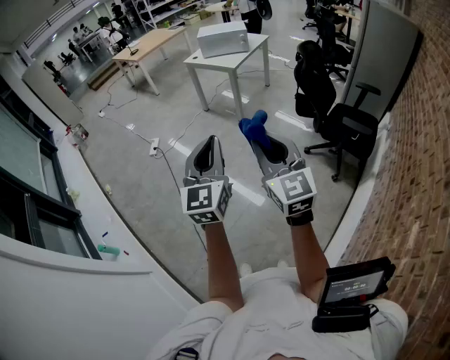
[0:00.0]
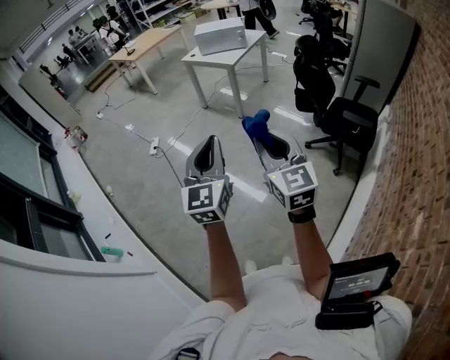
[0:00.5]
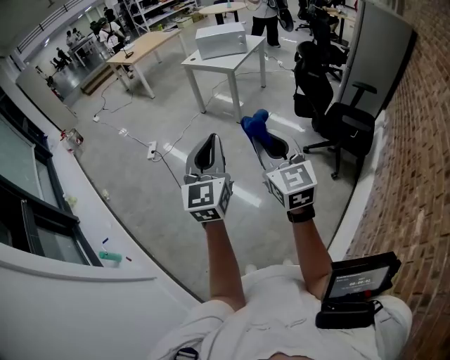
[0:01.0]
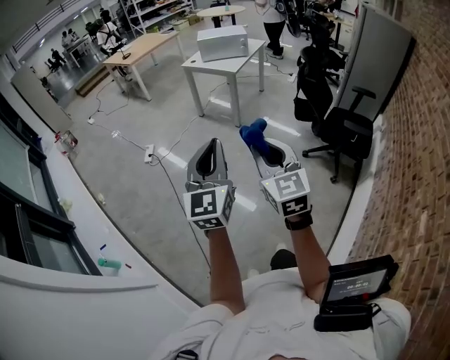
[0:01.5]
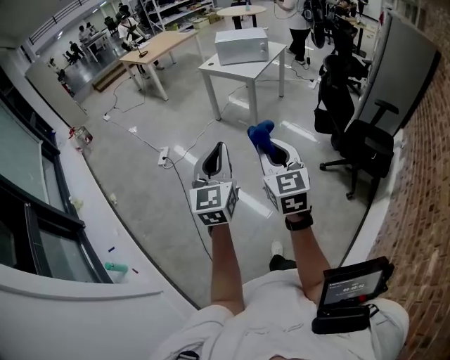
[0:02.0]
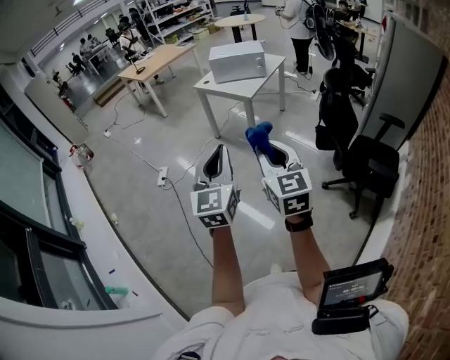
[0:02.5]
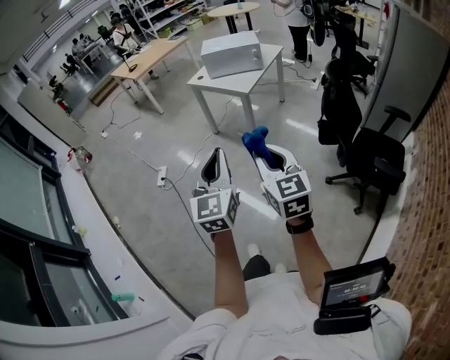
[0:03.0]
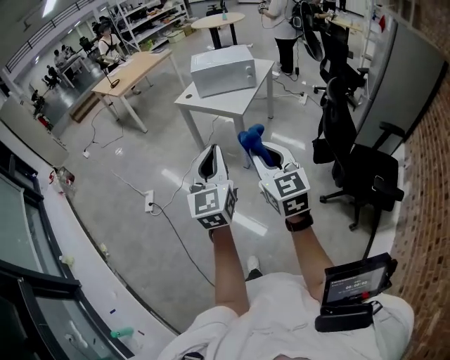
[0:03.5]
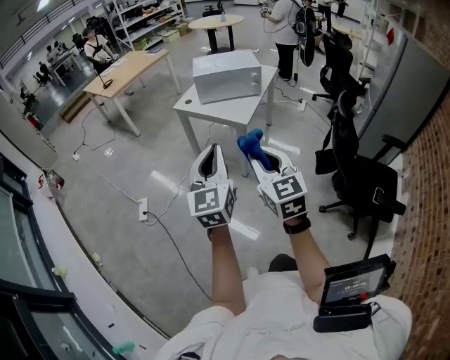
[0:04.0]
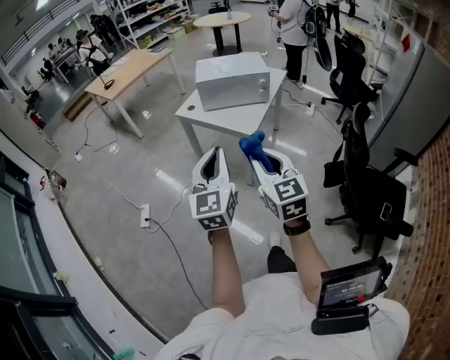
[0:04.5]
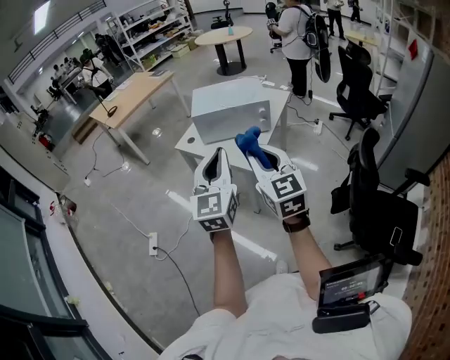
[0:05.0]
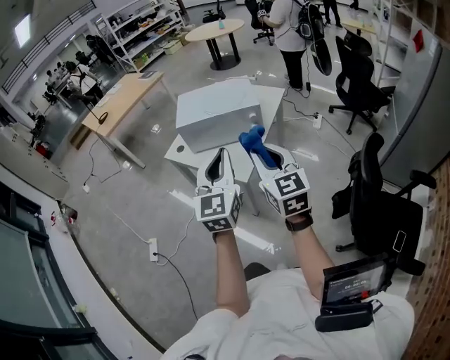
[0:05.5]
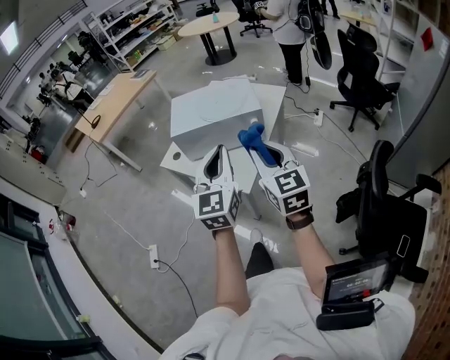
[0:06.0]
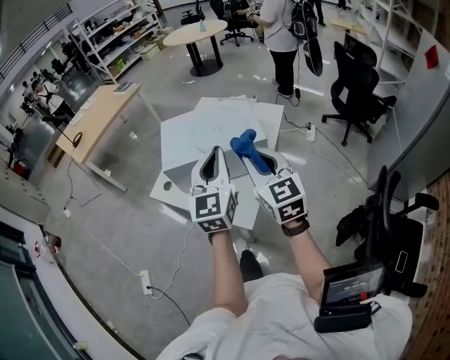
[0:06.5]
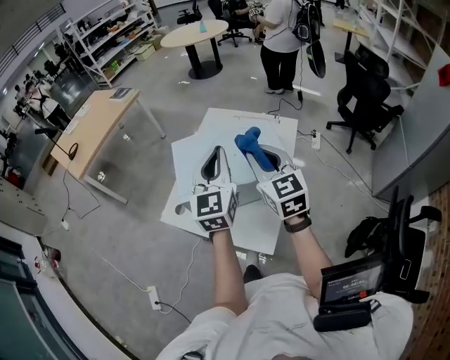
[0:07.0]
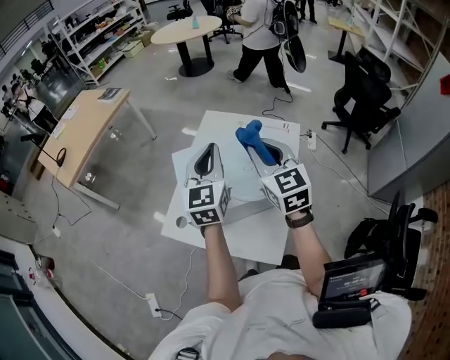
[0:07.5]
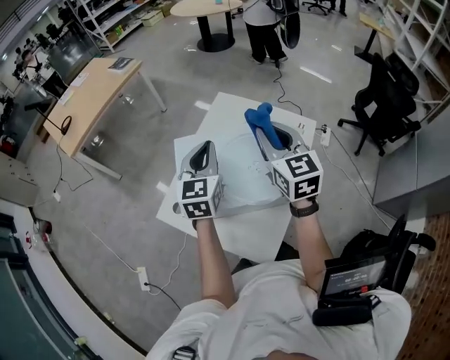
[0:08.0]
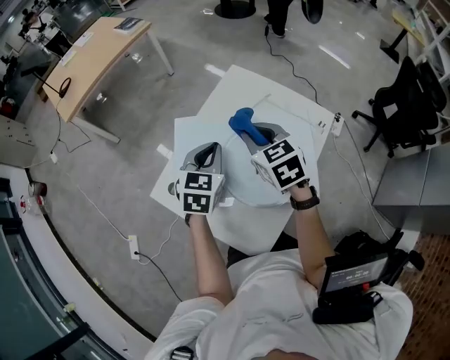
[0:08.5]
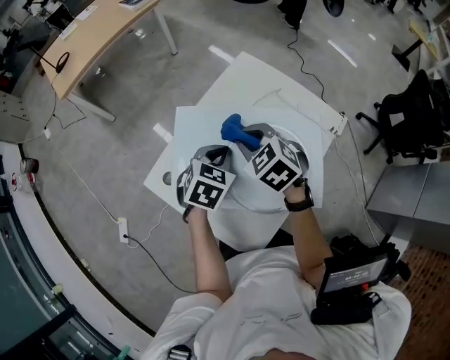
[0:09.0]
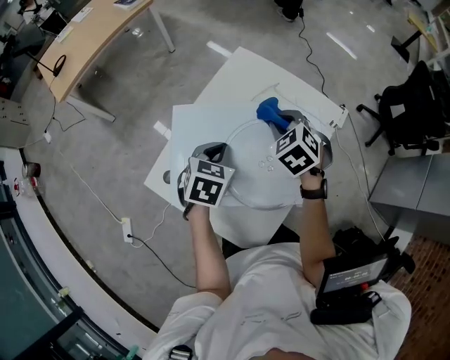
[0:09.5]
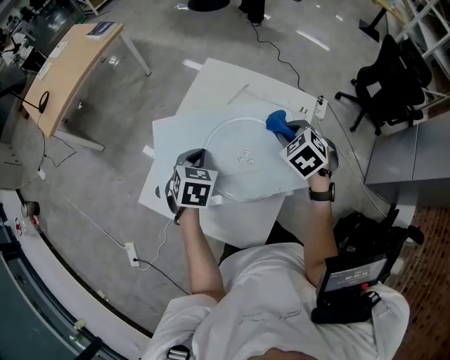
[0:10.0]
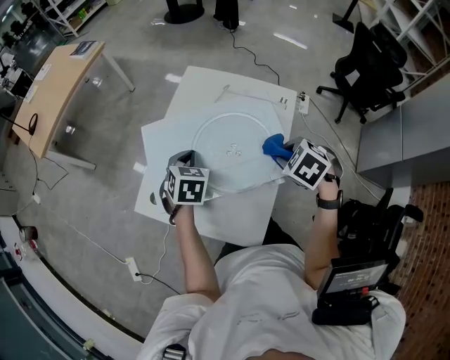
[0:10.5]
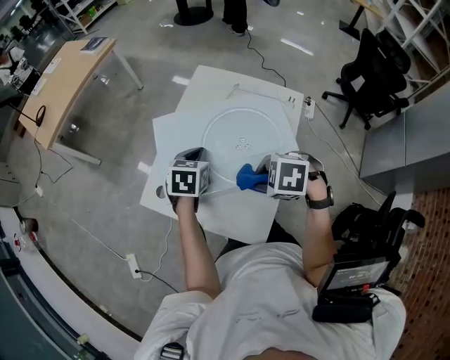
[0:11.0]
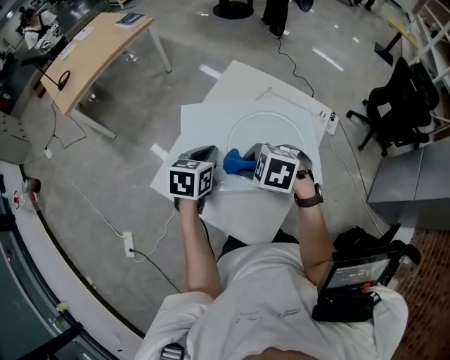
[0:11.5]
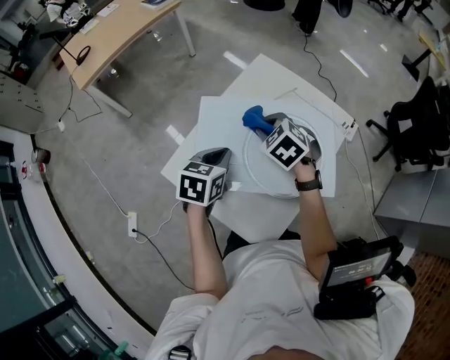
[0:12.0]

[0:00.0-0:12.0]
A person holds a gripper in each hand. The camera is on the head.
0:00.0 to 0:02.0: Both grippers travel together forward and to the left, about 15 cm.
0:02.0 to 0:04.0: Both grippers are carried forward, about 50 cm.
0:04.0 to 0:06.0: The pair of grippers is taken forward and to the right, approximately 50 cm.
0:06.0 to 0:08.0: Both grippers are carried forward, about 40 cm.
0:08.0 to 0:10.0: The two grippers go roughly 15 cm downward. The right gripper moves approximately 10 cm to the left and comes back, and angles its fingers downward, by about 50 degrees. The left gripper tips its fingers downward by some 40 degrees.
0:10.0 to 0:12.0: The left gripper shifts by approximately 5 cm, and swivels some 20 degrees; the right gripper moves roughly 20 cm, and swivels some 20 degrees.

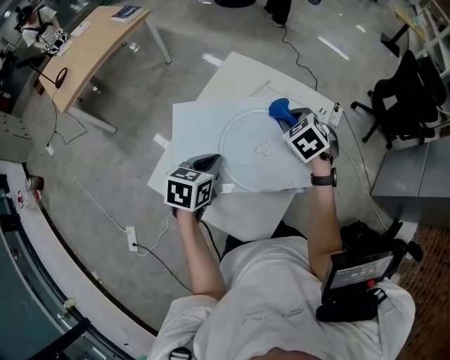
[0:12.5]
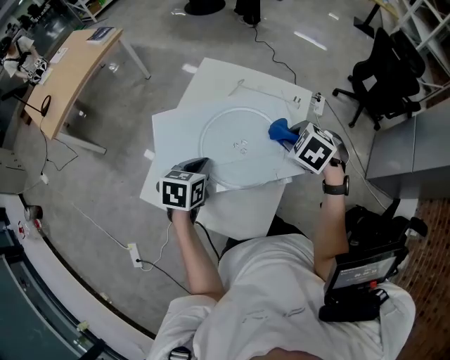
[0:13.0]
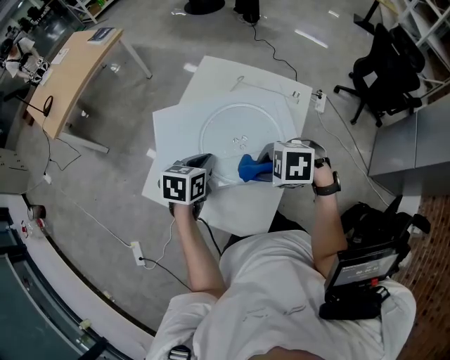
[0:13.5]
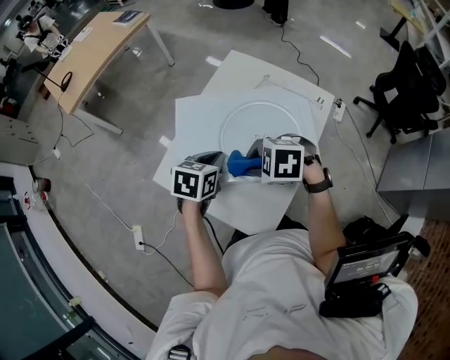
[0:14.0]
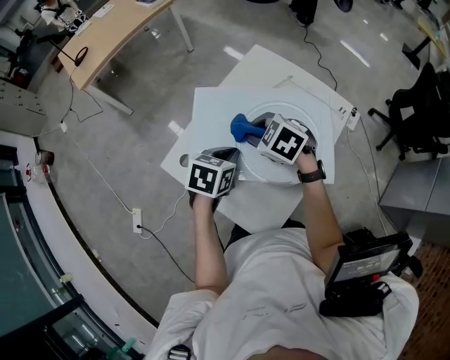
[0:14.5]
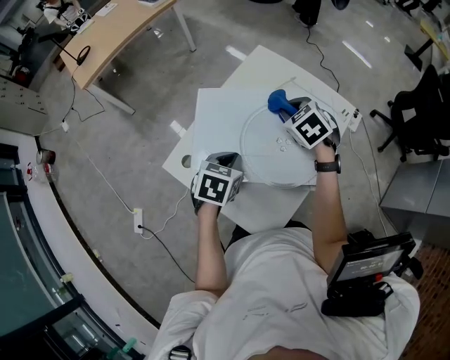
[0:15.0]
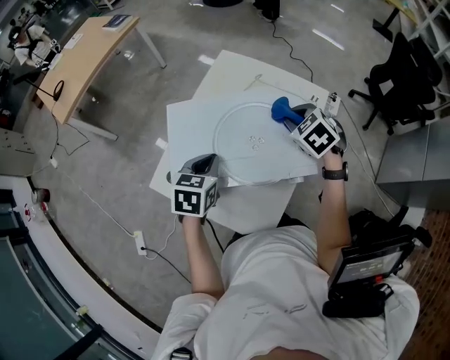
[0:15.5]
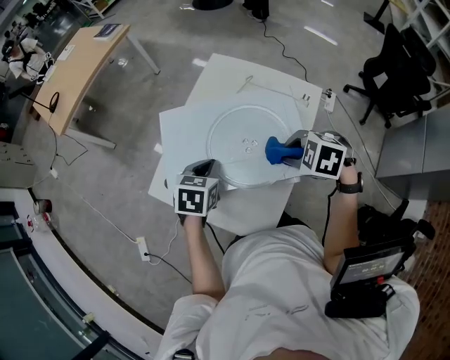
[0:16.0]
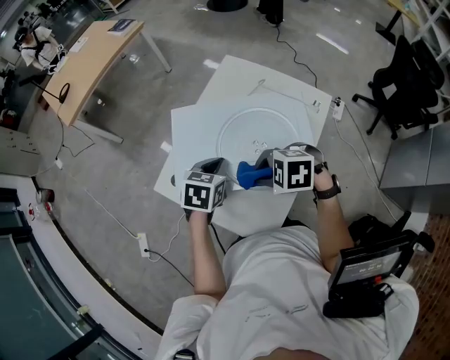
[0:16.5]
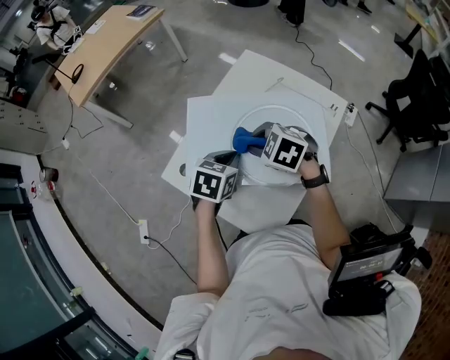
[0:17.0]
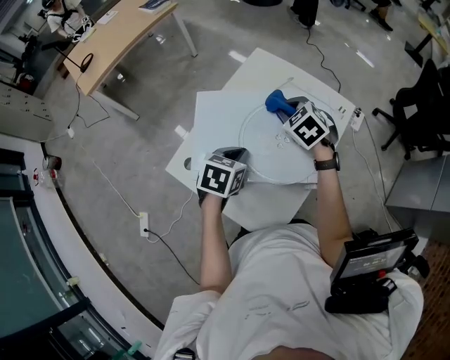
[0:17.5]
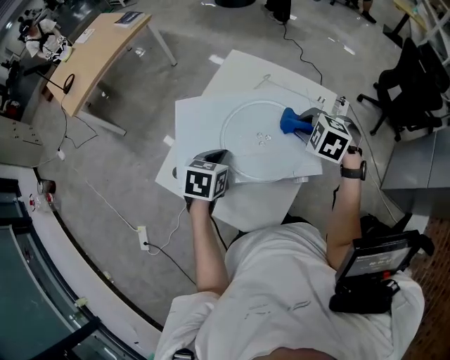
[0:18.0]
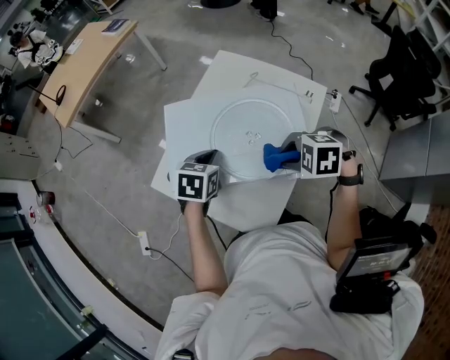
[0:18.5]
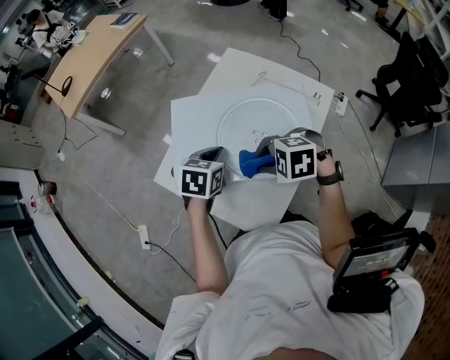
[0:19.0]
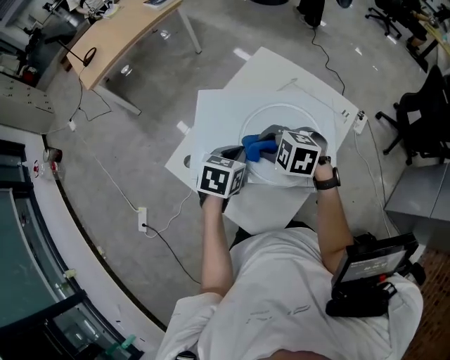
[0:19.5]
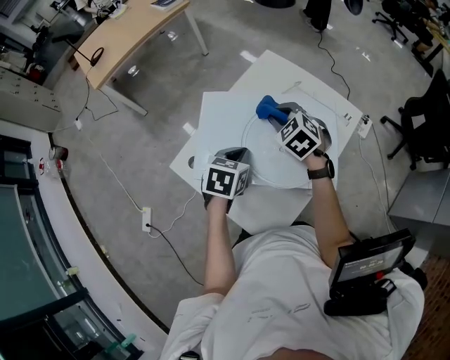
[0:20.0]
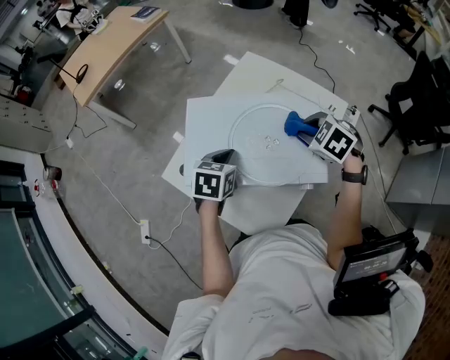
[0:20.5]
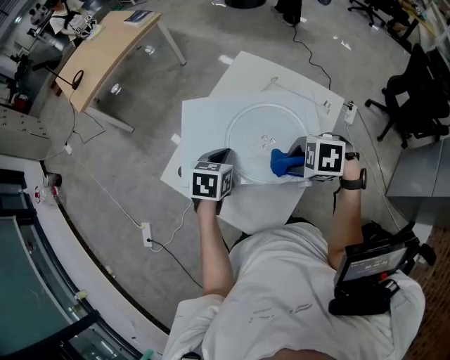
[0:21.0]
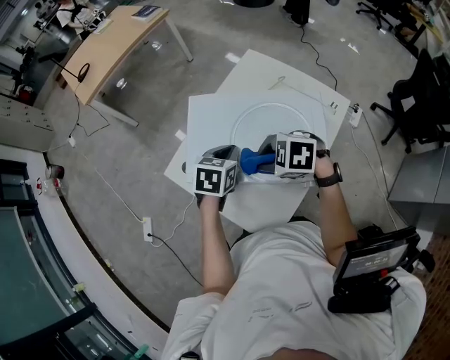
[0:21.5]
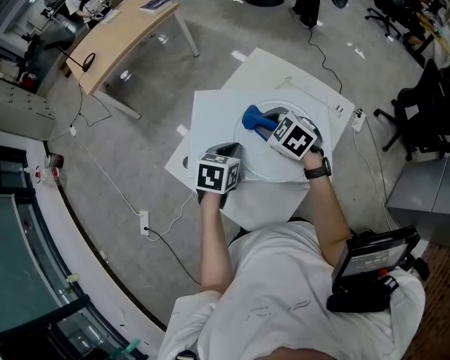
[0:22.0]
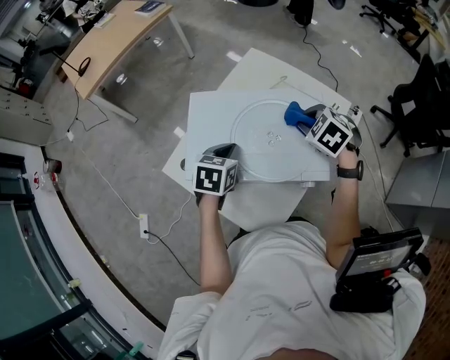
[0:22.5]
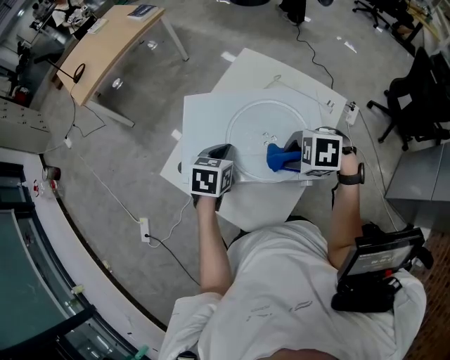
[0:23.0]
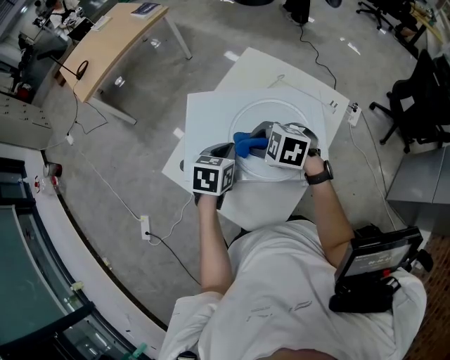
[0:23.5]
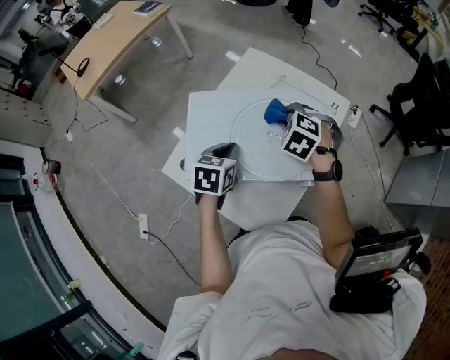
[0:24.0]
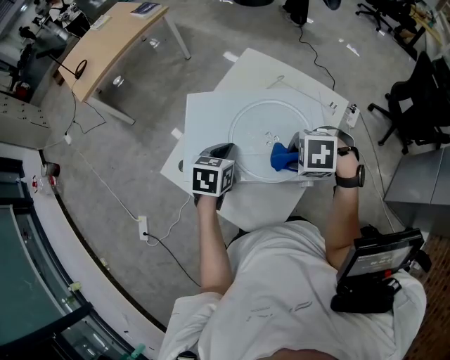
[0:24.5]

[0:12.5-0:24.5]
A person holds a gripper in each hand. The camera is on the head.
0:12.5 to 0:14.5: The right gripper ends up roughly 20 cm from where it was, and turns by some 30 degrees.
0:14.5 to 0:16.5: The right gripper turns by approximately 20 degrees.
0:18.5 to 0:20.5: The right gripper is displaced forward and to the right by about 10 cm, and swivels approximately 30 degrees.
0:22.5 to 0:24.5: The right gripper ends up some 15 cm from where it was, and swivels about 40 degrees.

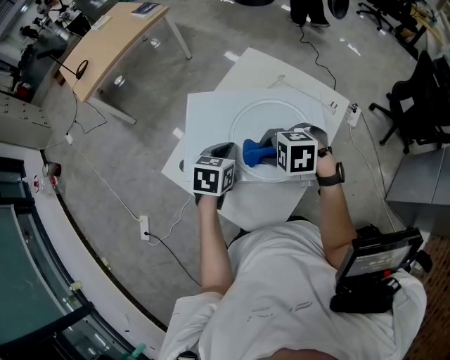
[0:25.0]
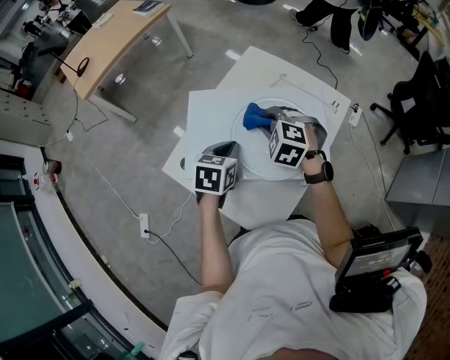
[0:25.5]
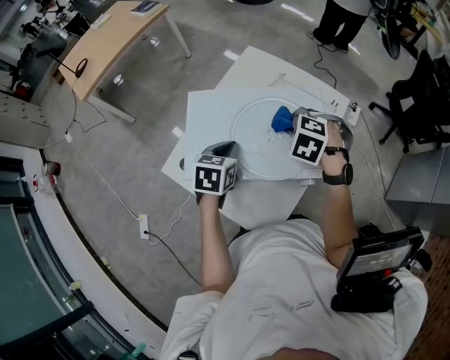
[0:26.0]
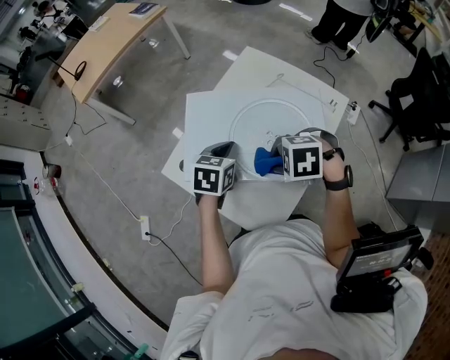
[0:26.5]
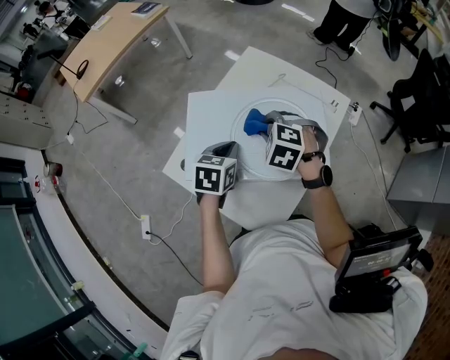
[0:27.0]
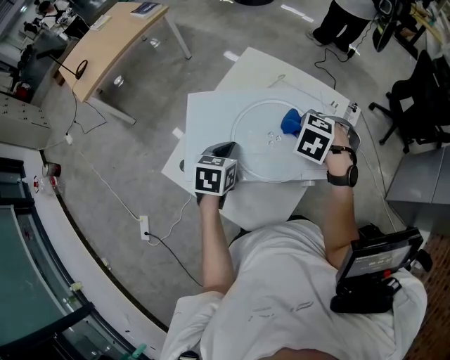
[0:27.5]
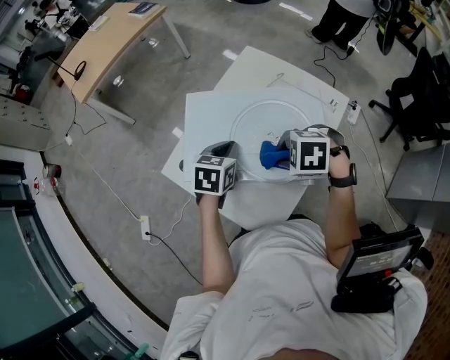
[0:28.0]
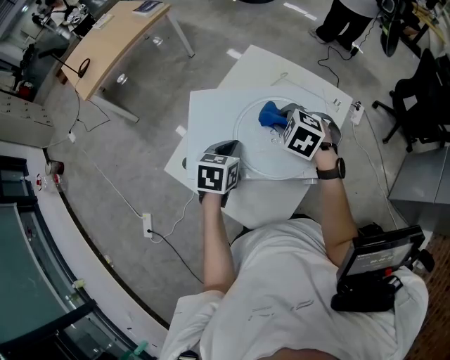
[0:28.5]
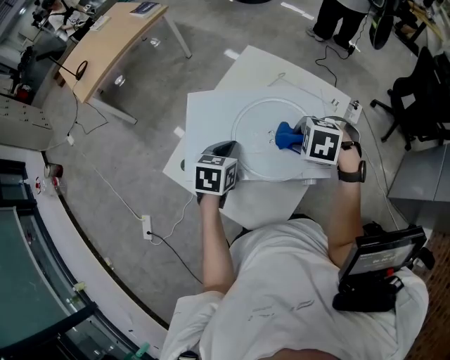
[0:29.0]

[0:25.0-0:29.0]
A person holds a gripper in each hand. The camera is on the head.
0:25.0 to 0:27.0: The right gripper rotates roughly 30 degrees.
0:27.0 to 0:29.0: The right gripper moves roughly 10 cm, and changes its angle by approximately 20 degrees.
